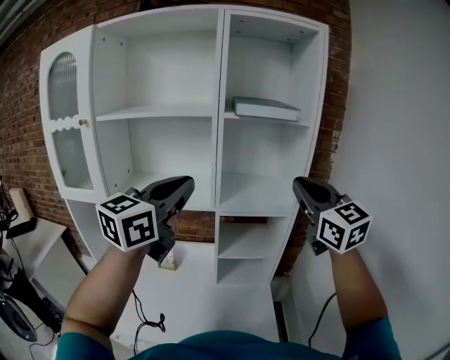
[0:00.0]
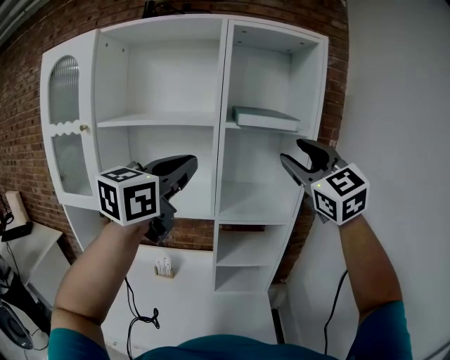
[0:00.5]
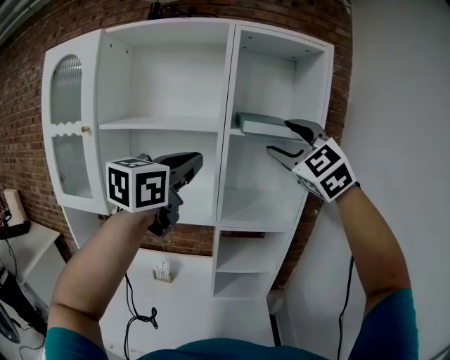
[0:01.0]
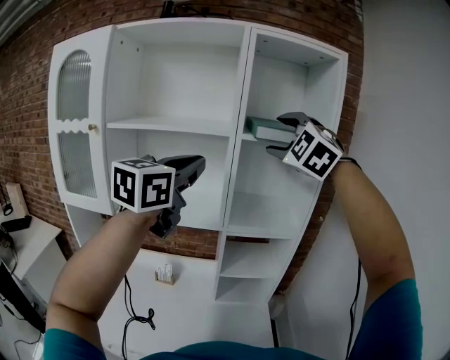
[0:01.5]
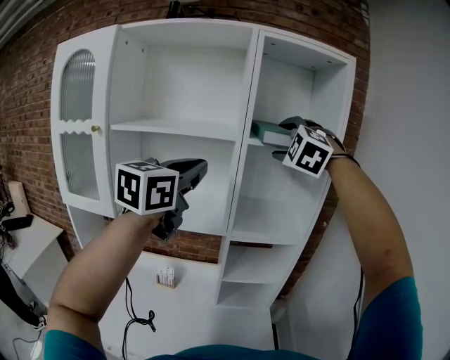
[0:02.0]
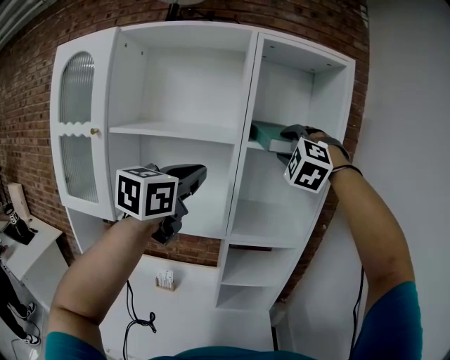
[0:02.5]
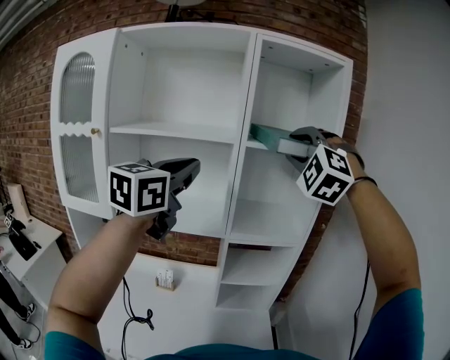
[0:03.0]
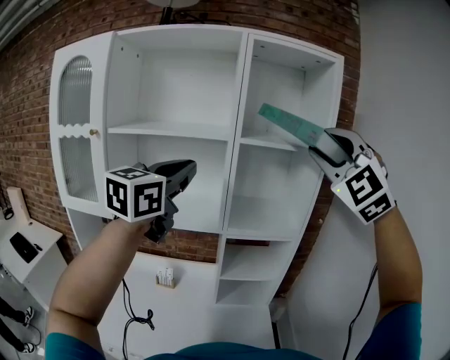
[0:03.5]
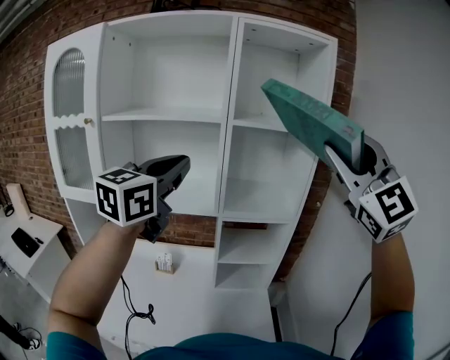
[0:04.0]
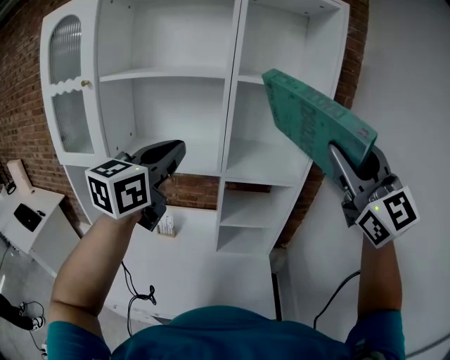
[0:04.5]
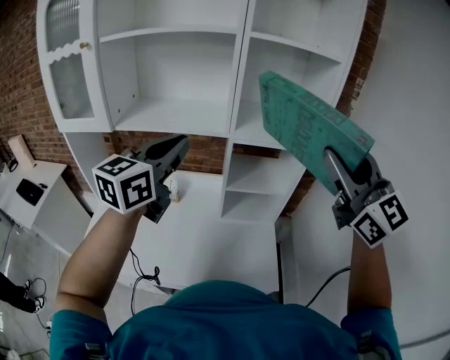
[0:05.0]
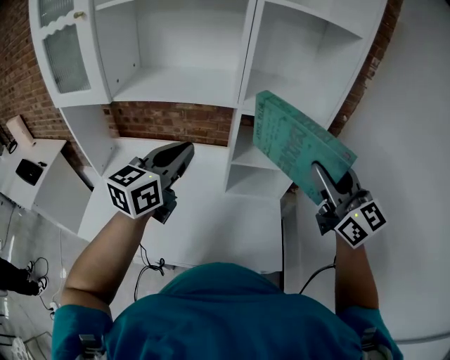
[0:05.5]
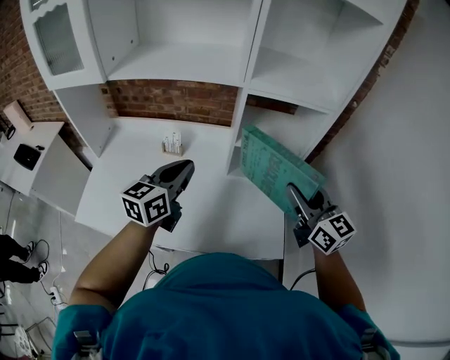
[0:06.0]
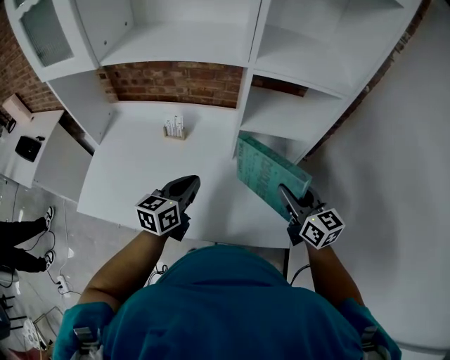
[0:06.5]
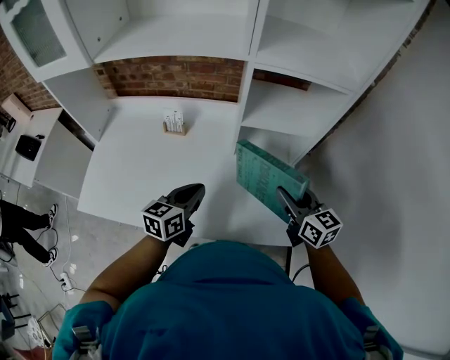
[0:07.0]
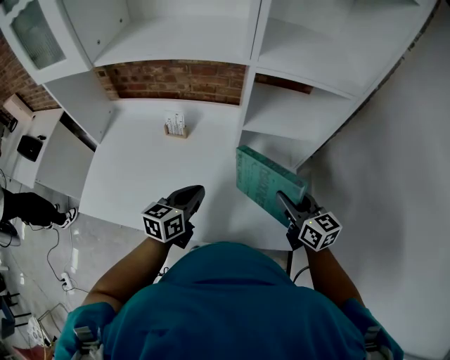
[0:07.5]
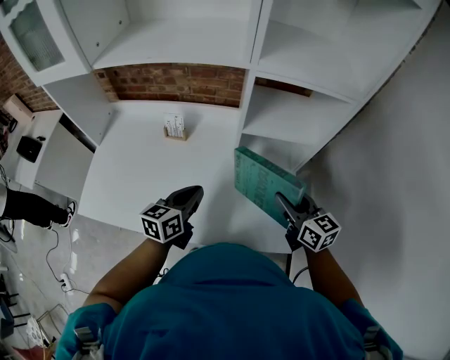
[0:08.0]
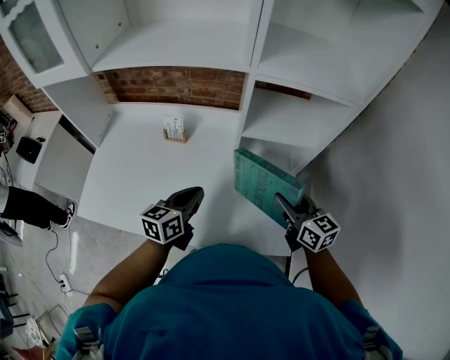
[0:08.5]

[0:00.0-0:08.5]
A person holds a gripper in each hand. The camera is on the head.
0:00.0 to 0:02.0: The left gripper goes roughly 10 cm forward and upward; the right gripper moves forward, to the left and upward, about 20 cm, twists about 60 degrees counterclockwise, seen from behind, and opens up.
0:02.0 to 0:04.0: The right gripper moves backward and to the right, some 25 cm, tilts its fingers some 30 degrees upward, and closes its fingers. The left gripper shifts about 5 cm backward.
0:04.0 to 0:06.5: Both grippers travel together downward, approximately 50 cm. The left gripper rotates about 40 degrees; the right gripper rotates around the line of its fingers by roughly 60 degrees, clockwise from behind.
0:06.5 to 0:08.5: The right gripper is displaced downward by some 5 cm.

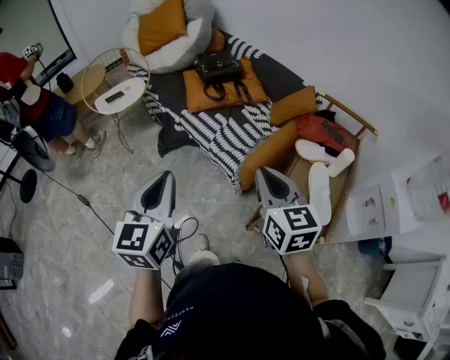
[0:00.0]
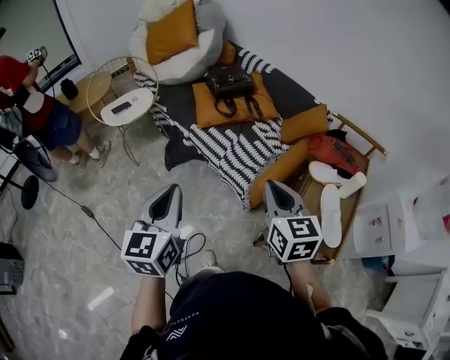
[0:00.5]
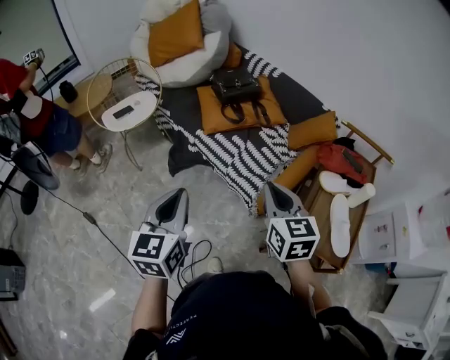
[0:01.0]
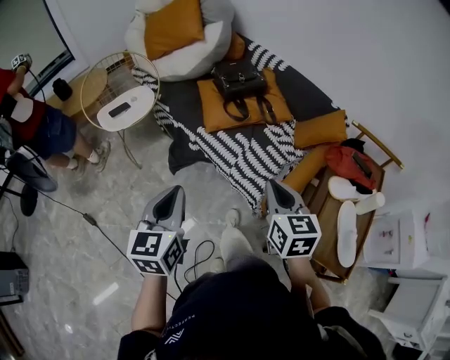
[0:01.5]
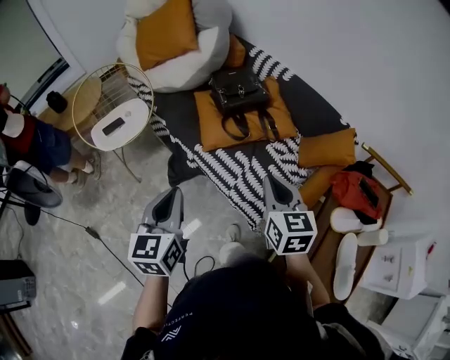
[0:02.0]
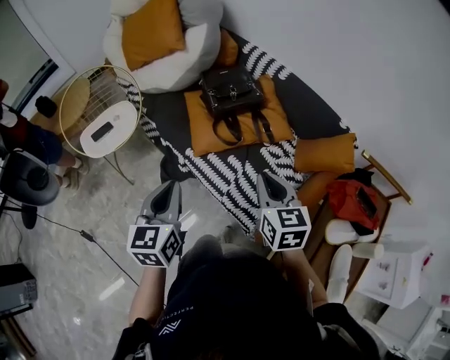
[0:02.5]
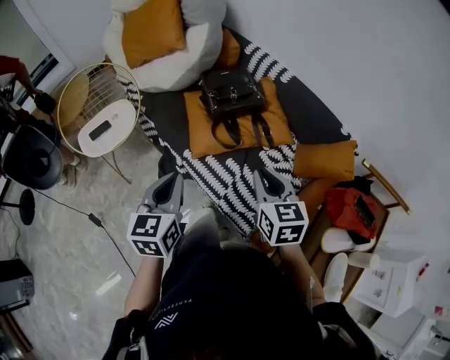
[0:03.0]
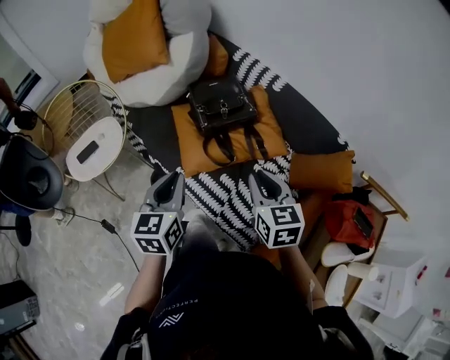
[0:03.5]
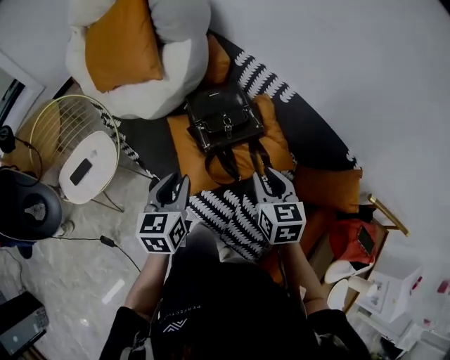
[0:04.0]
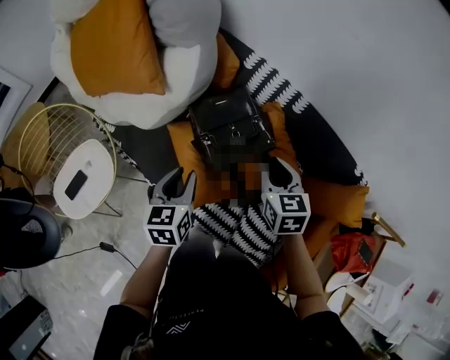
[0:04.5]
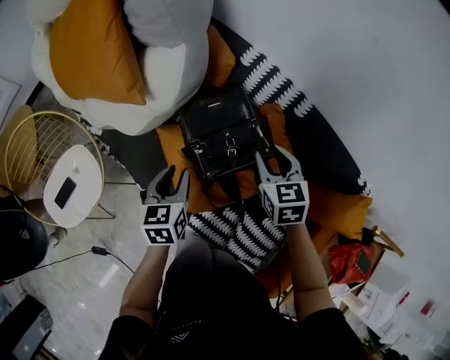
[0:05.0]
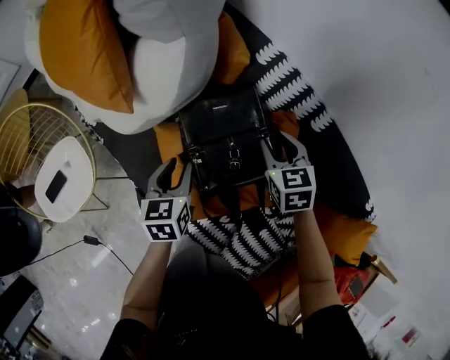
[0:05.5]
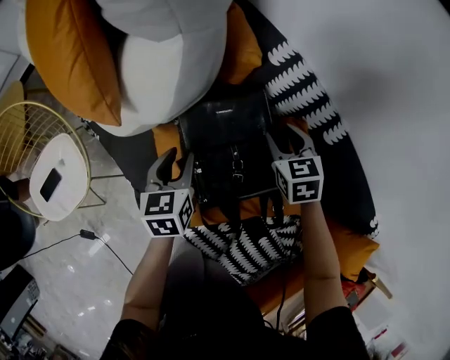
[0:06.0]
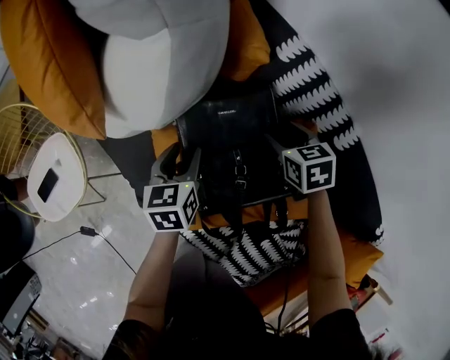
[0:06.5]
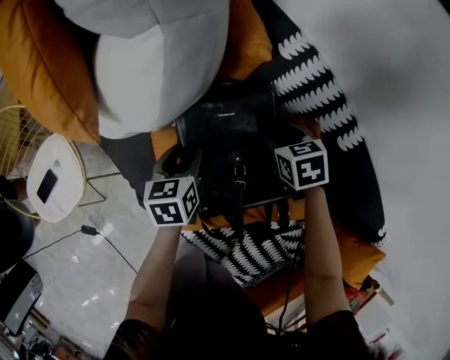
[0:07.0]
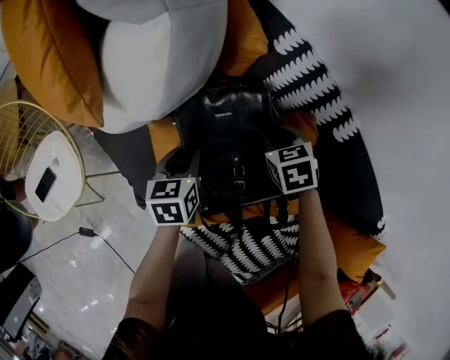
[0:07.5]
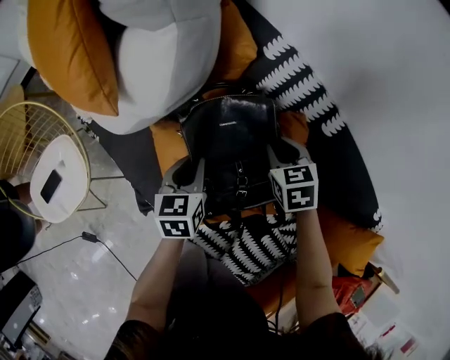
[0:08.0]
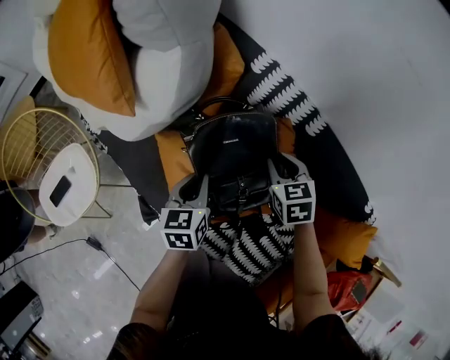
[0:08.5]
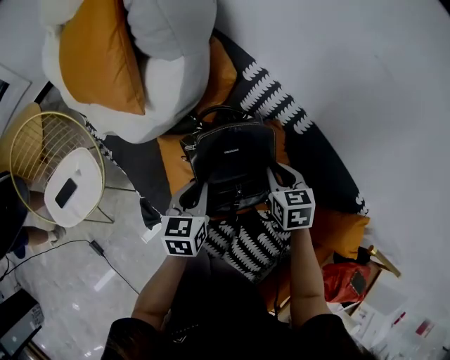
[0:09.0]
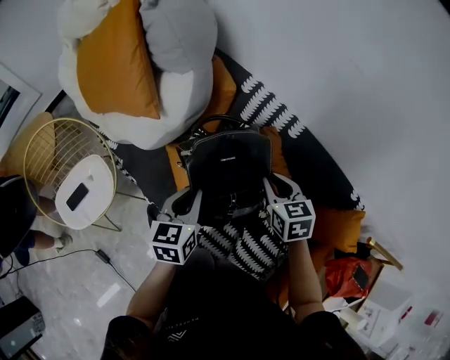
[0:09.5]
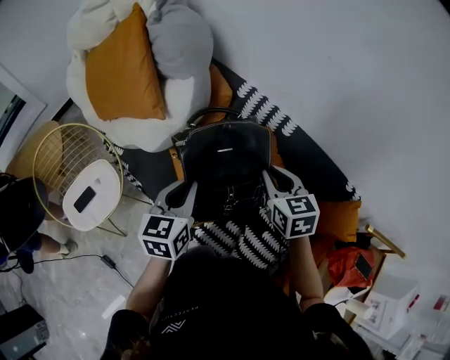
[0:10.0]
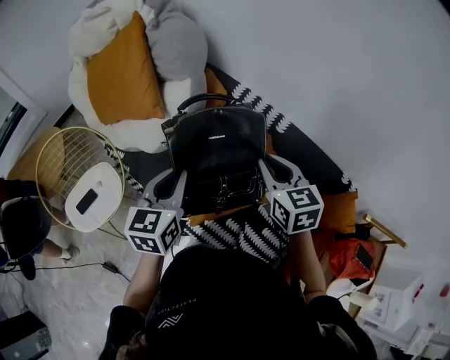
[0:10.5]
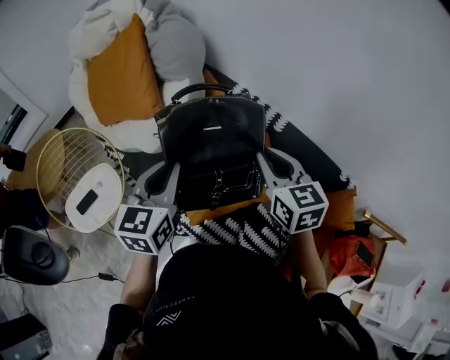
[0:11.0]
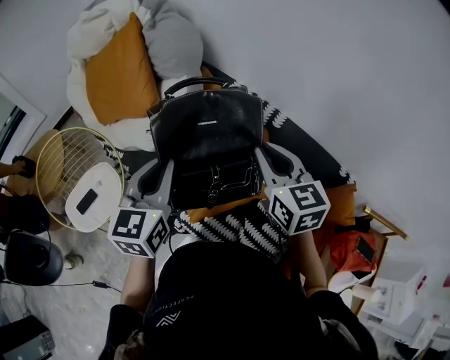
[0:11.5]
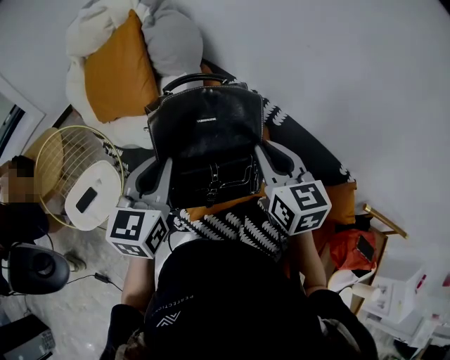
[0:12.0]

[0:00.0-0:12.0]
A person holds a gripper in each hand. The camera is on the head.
0:00.0 to 0:02.0: The grippers both shift forward by roughly 30 cm.
0:02.0 to 0:04.0: Both grippers travel together forward, about 30 cm. The left gripper opens its fingers.
0:04.0 to 0:06.0: Both grippers move forward and downward, some 35 cm. The right gripper swivels about 20 degrees.
0:06.0 to 0:08.0: The right gripper moves roughly 5 cm. The left gripper ends up about 5 cm from where it was.
0:08.0 to 0:10.0: Both grippers travel together upward and backward, roughly 30 cm. The right gripper changes its angle by approximately 20 degrees.
0:10.0 to 0:12.0: Both grippers travel together upward, some 10 cm.

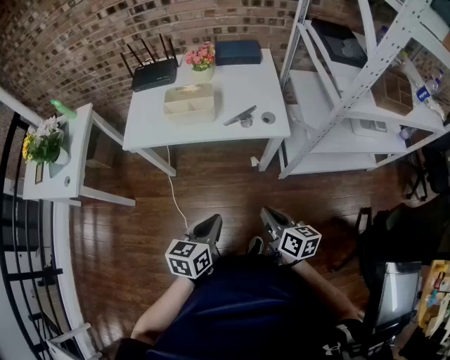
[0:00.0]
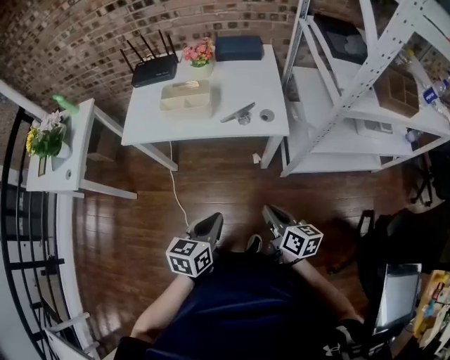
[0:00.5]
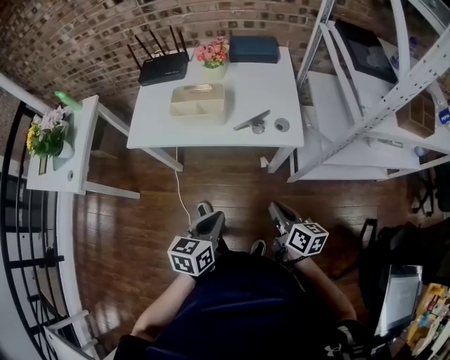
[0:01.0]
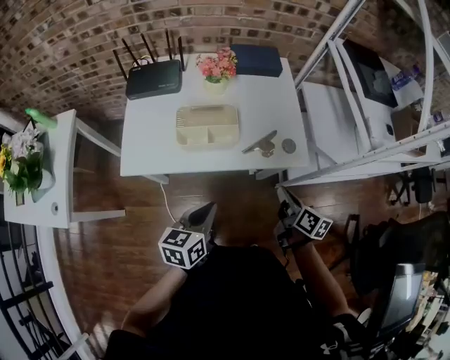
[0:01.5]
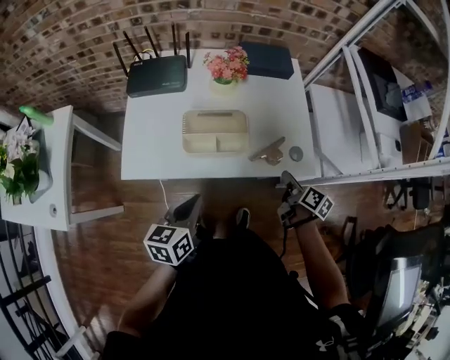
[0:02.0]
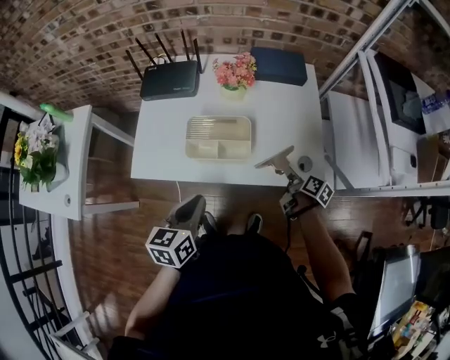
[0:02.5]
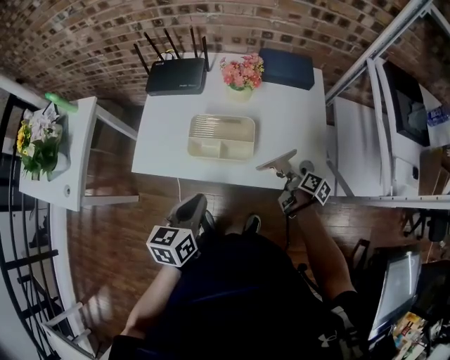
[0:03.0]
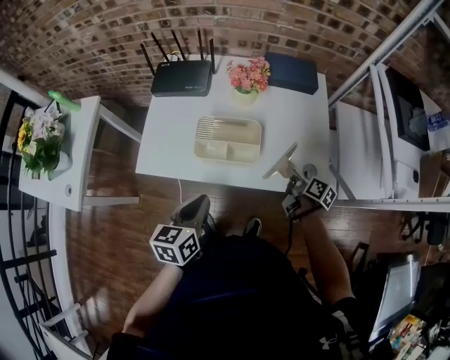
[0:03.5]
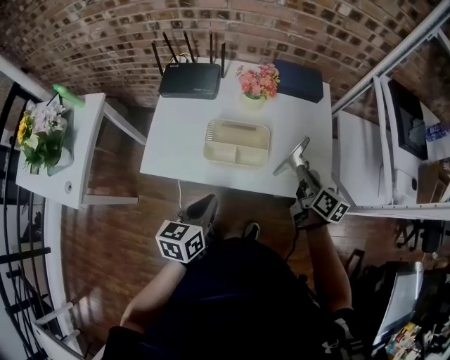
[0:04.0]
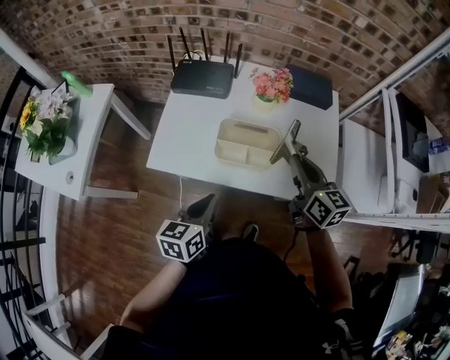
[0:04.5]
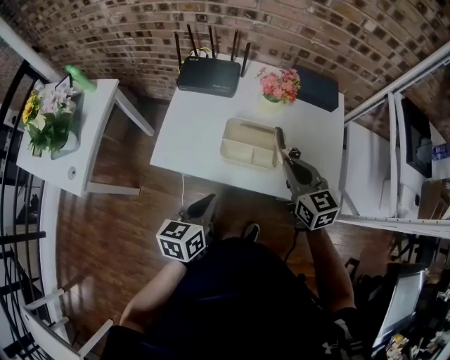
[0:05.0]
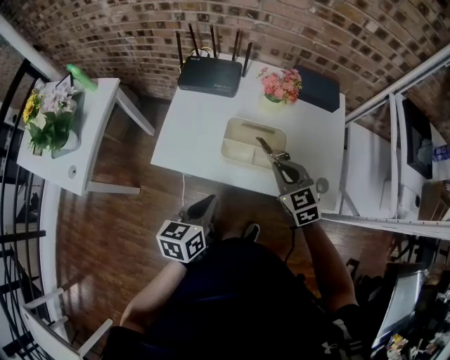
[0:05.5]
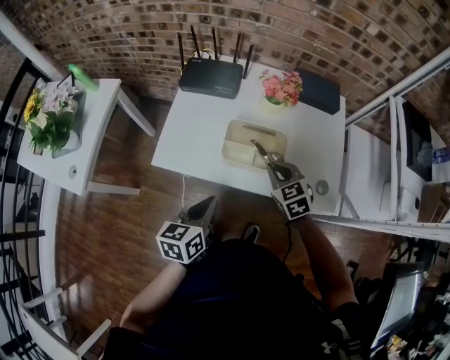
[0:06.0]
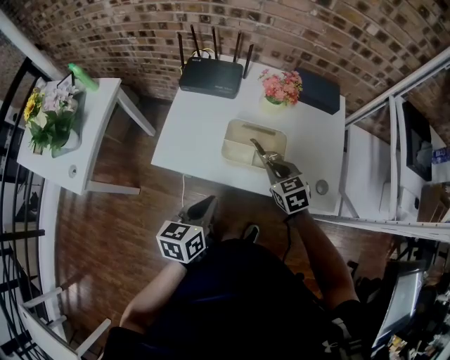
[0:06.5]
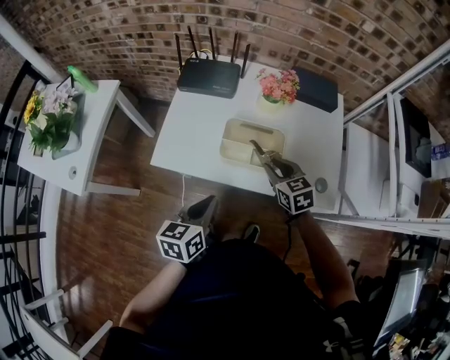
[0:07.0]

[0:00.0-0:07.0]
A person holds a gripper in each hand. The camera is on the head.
0:00.0 to 0:02.0: The left gripper moves forward and to the left, roughly 30 cm, while the right gripper heads forward, covering roughly 30 cm, turns by roughly 30 degrees, and opens up.
0:02.0 to 0:03.5: The right gripper is displaced forward by approximately 10 cm.
0:03.5 to 0:05.0: The right gripper moves upward and to the left, approximately 25 cm, and twists some 60 degrees counterclockwise, seen from behind.
0:05.0 to 0:07.0: The right gripper goes roughly 10 cm downward, and opens its fingers.
